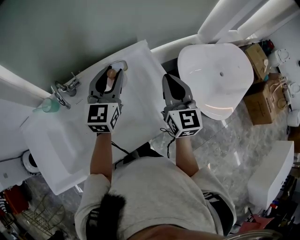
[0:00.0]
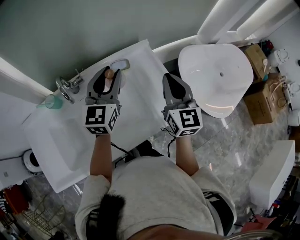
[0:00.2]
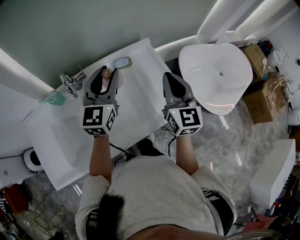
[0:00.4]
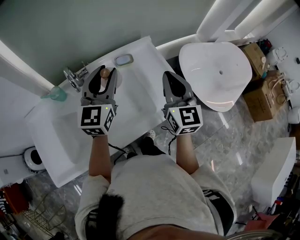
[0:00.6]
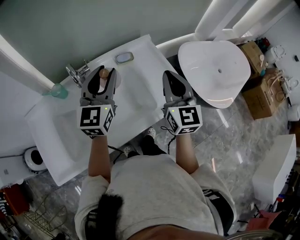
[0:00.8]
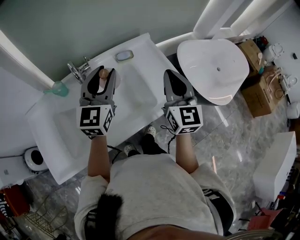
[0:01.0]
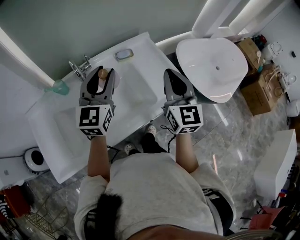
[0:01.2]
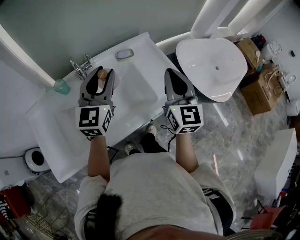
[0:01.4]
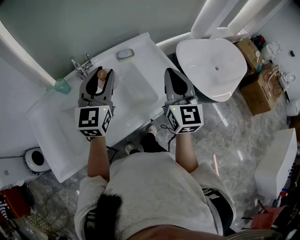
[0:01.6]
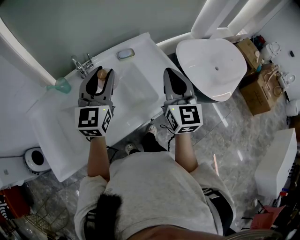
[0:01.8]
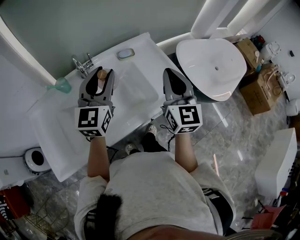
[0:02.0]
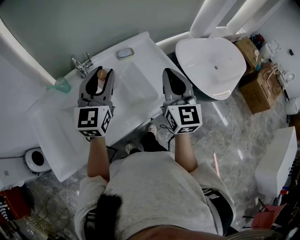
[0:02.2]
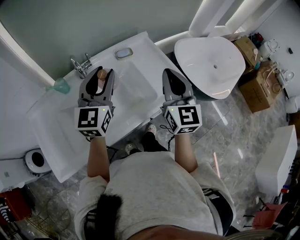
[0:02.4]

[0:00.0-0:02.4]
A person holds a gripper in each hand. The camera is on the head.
0:00.0 to 0:01.2: The right gripper shifts some 15 cm backward. Meanwhile the left gripper goes approximately 15 cm backward and to the left.
0:01.2 to 0:02.4: The grippers move only a little.

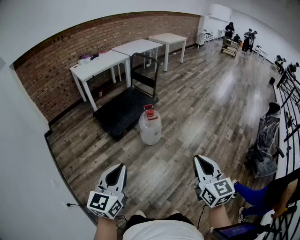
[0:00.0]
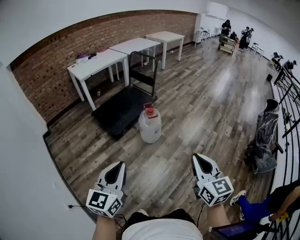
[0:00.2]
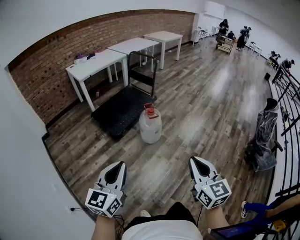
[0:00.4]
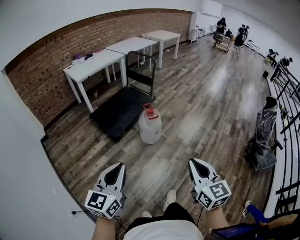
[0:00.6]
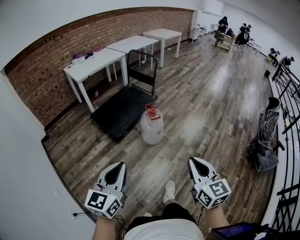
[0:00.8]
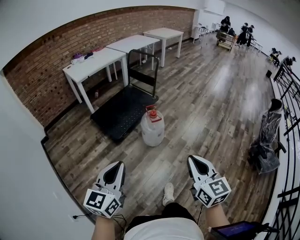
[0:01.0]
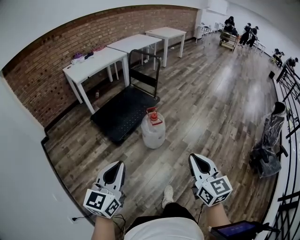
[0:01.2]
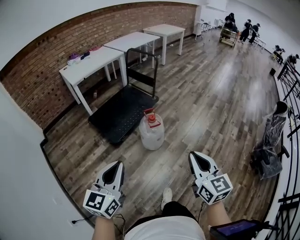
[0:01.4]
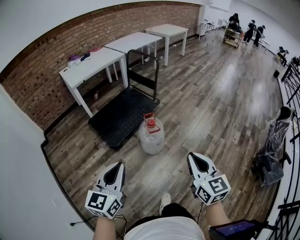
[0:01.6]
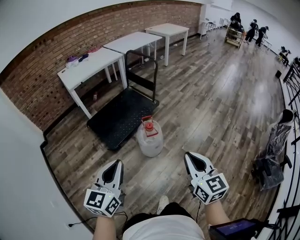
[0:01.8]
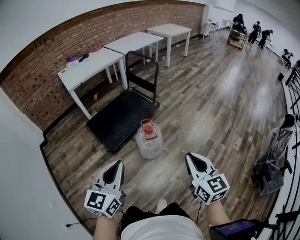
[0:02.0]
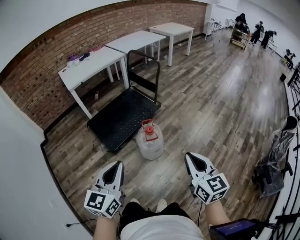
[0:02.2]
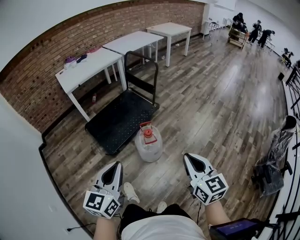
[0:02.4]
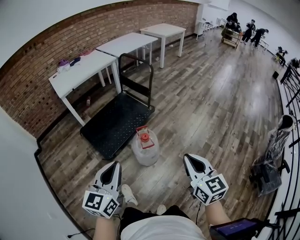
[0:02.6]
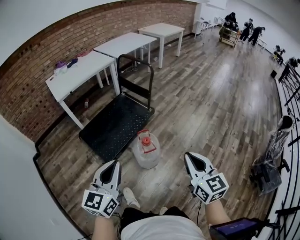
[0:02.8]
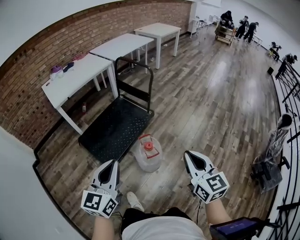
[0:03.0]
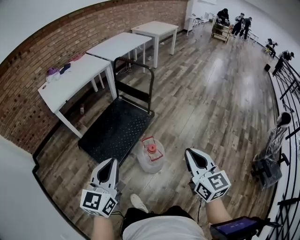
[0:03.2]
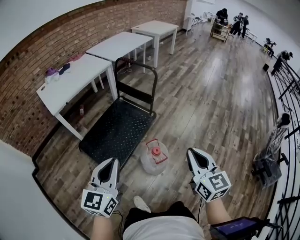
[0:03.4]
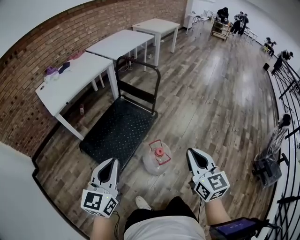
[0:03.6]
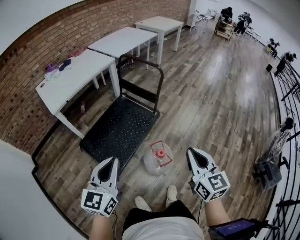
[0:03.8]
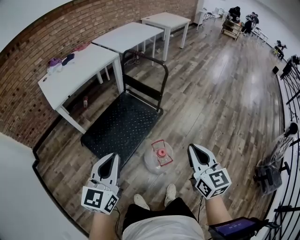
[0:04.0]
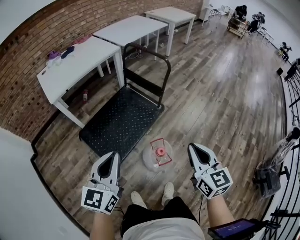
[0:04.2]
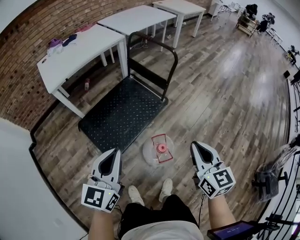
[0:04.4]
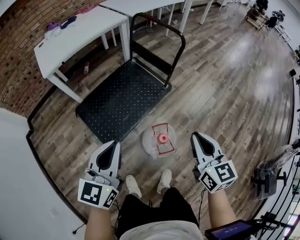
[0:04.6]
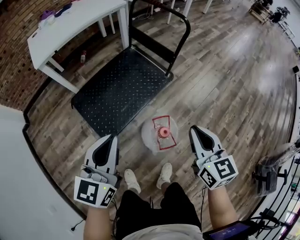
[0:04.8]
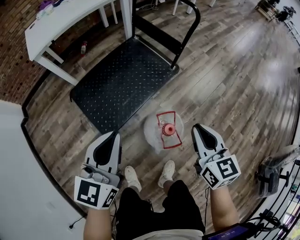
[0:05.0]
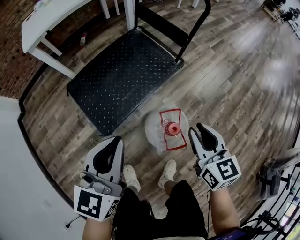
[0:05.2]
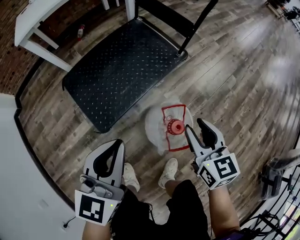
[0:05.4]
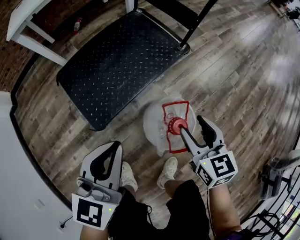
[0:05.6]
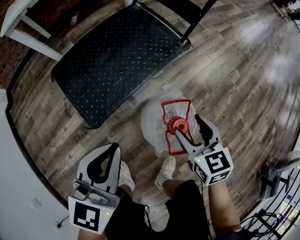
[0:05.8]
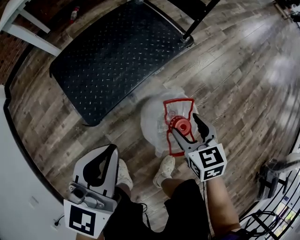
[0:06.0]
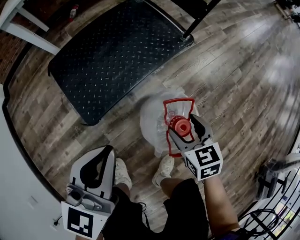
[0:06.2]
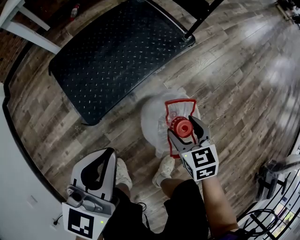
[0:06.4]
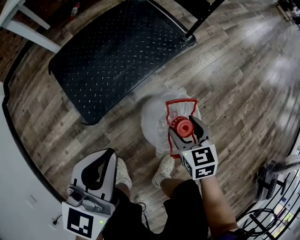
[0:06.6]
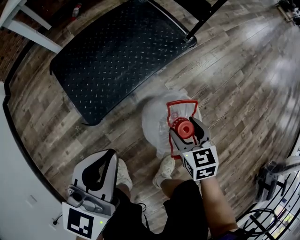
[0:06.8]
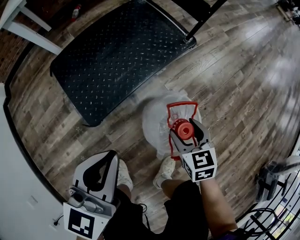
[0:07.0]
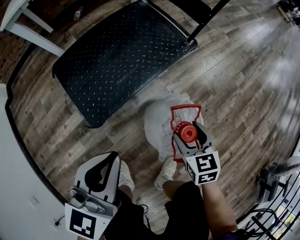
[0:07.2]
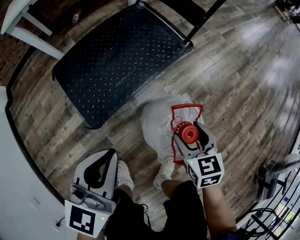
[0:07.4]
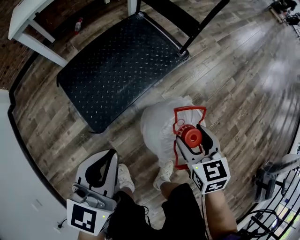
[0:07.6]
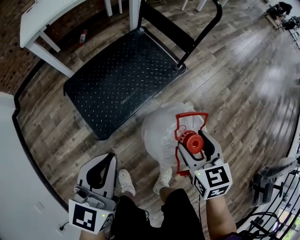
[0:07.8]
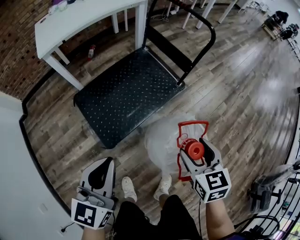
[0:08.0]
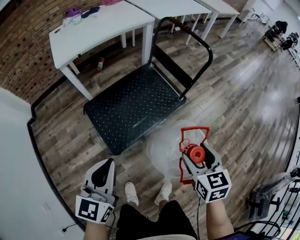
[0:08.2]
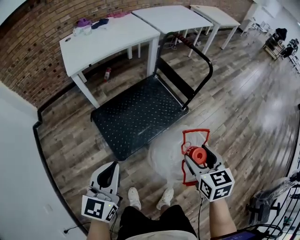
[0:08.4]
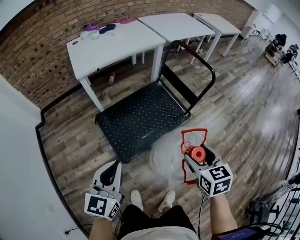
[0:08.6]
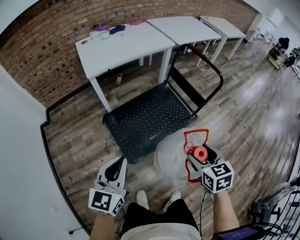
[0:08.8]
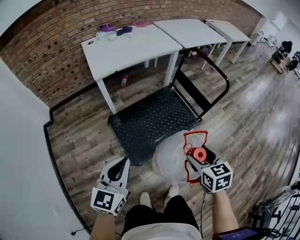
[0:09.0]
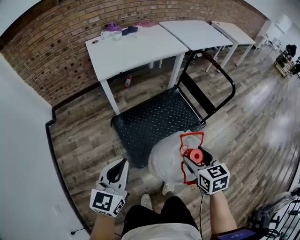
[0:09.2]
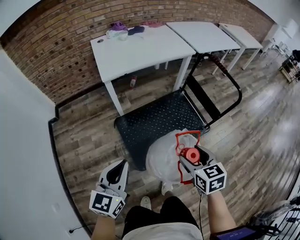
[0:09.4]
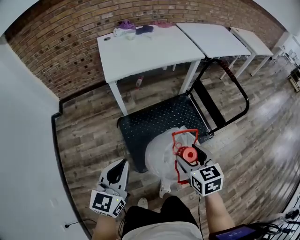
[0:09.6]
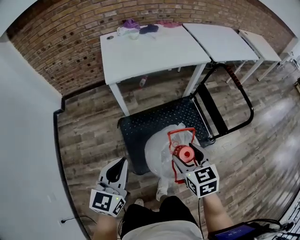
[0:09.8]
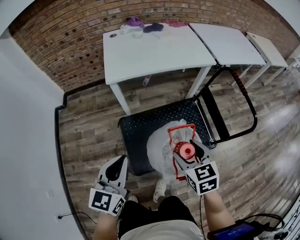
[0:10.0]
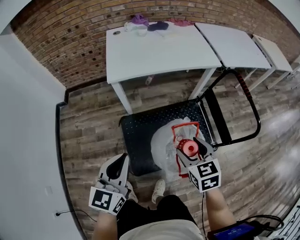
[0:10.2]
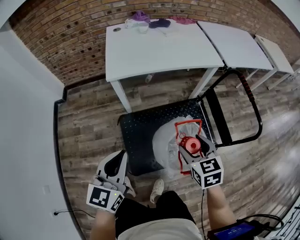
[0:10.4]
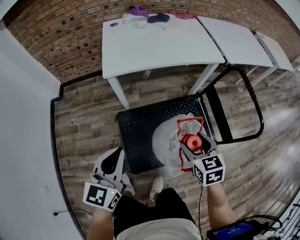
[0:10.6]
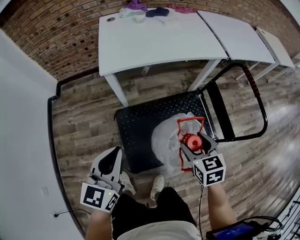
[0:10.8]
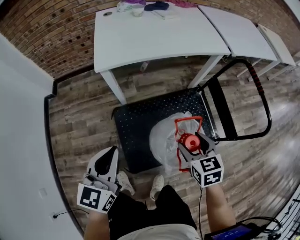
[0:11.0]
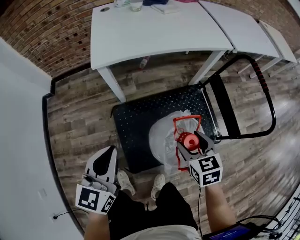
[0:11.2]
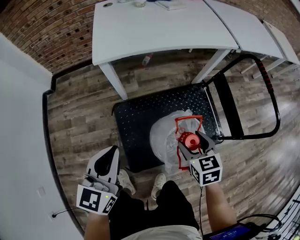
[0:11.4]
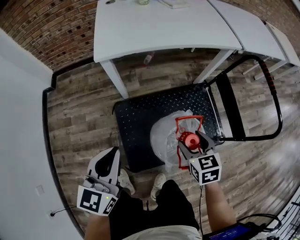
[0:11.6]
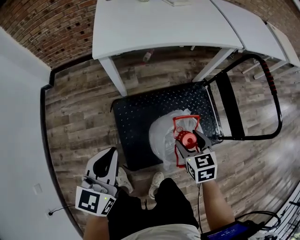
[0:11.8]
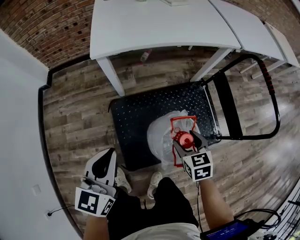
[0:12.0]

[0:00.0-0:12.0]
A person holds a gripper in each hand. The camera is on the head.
0:00.0 to 0:01.6: Both grippers move forward, roughly 25 cm.
0:01.6 to 0:03.0: Both grippers move forward, some 25 cm.
0:03.0 to 0:04.4: The right gripper heads forward and downward, covering some 20 cm. Meanwhile the left gripper moves forward, some 20 cm.
0:04.4 to 0:06.0: Both grippers travel together downward, some 35 cm. The right gripper changes its angle by about 30 degrees, and opens up.
0:06.0 to 0:07.6: The right gripper is displaced upward by roughly 10 cm. The left gripper travels upward by about 5 cm.
0:07.6 to 0:09.0: The grippers both shift upward and to the left by roughly 30 cm.
0:09.0 to 0:10.4: Both grippers move forward, about 25 cm. The right gripper changes its angle by roughly 20 degrees.
0:10.4 to 0:12.0: The right gripper heads downward, covering approximately 20 cm. The left gripper moves downward, some 10 cm.

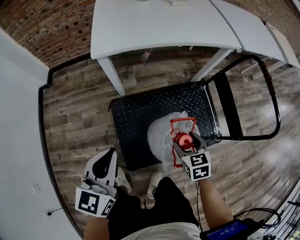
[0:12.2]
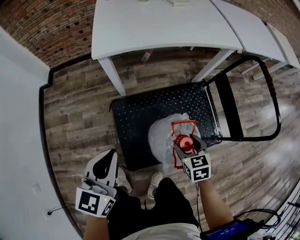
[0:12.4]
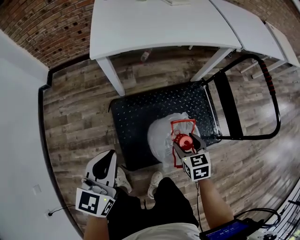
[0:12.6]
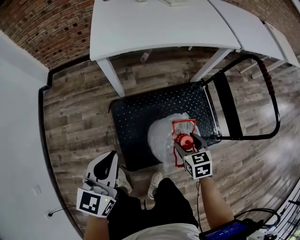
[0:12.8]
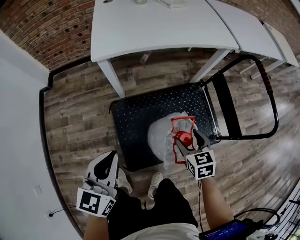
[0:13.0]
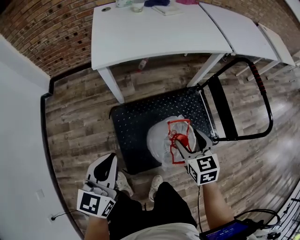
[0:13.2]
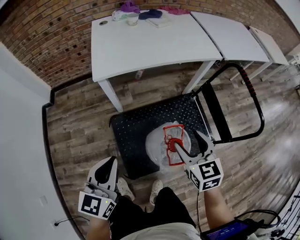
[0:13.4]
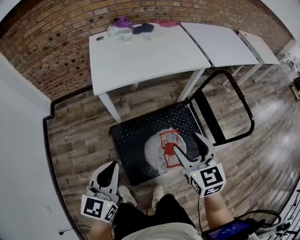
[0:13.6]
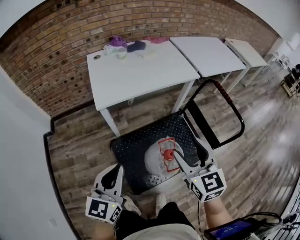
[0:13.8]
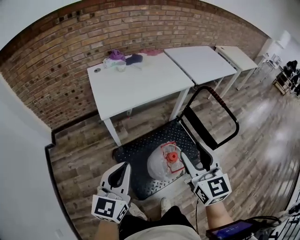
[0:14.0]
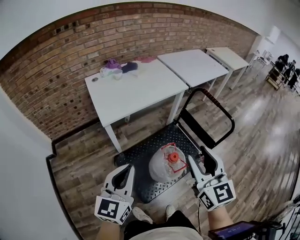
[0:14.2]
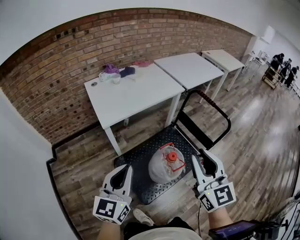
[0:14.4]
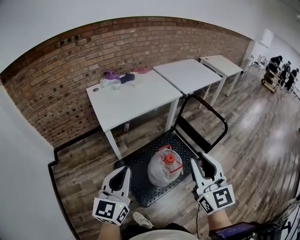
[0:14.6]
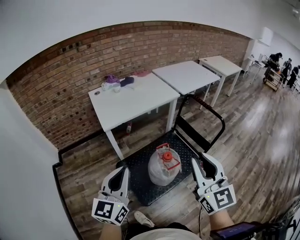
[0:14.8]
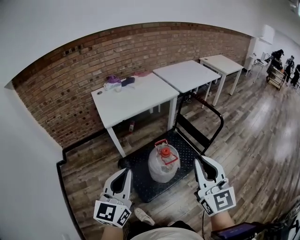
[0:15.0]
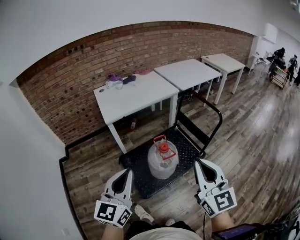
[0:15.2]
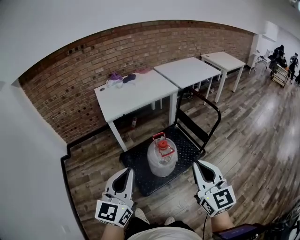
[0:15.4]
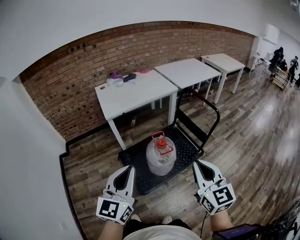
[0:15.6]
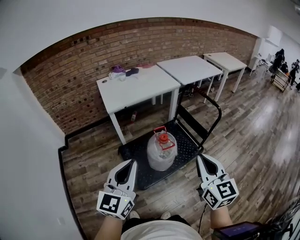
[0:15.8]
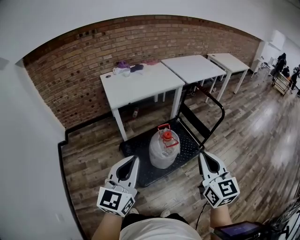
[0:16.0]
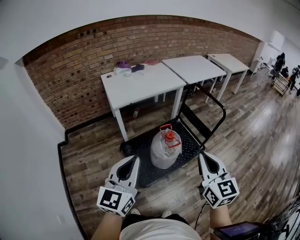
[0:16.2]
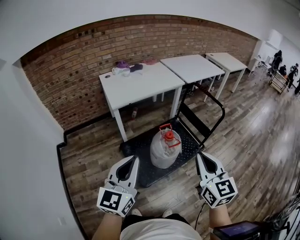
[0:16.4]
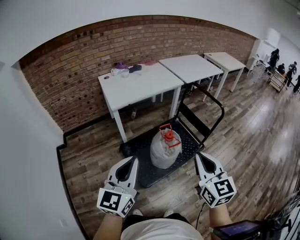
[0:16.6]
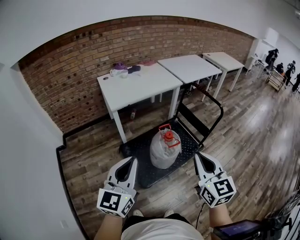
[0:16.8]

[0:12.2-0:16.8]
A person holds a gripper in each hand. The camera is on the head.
0:12.2 to 0:13.8: The right gripper is displaced upward by approximately 35 cm, and tips its fingers upward by about 30 degrees. Meanwhile the left gripper heads upward, covering roughly 15 cm.
0:13.8 to 0:15.2: The right gripper moves backward and upward, some 30 cm, rotates roughly 20 degrees, and closes. Meanwhile the left gripper travels backward, upward and to the right by roughly 25 cm.
0:15.2 to 0:16.8: The grippers both shift to the left by approximately 5 cm.

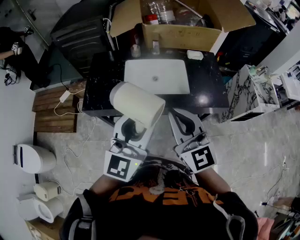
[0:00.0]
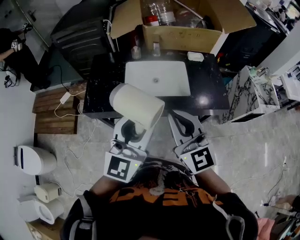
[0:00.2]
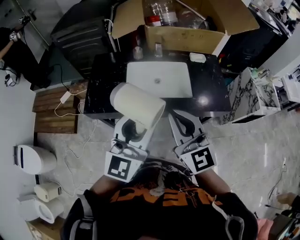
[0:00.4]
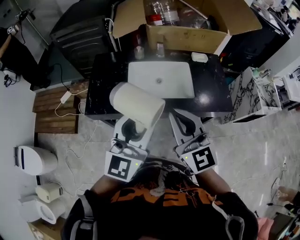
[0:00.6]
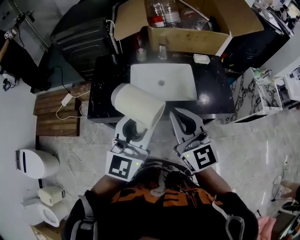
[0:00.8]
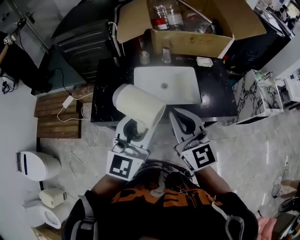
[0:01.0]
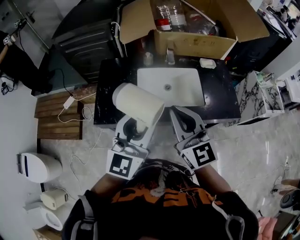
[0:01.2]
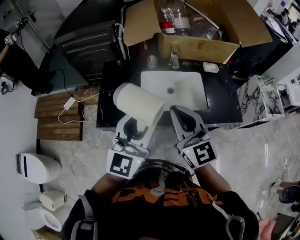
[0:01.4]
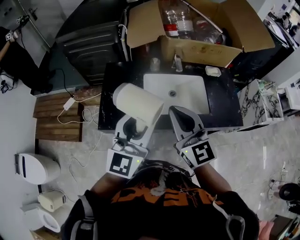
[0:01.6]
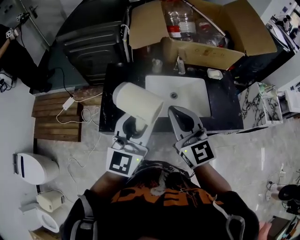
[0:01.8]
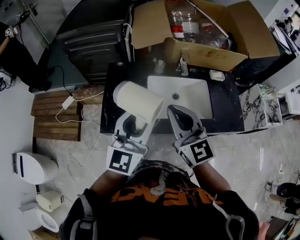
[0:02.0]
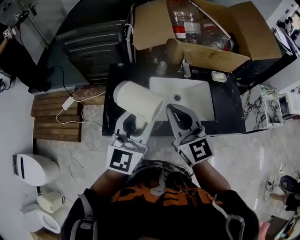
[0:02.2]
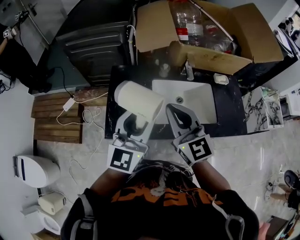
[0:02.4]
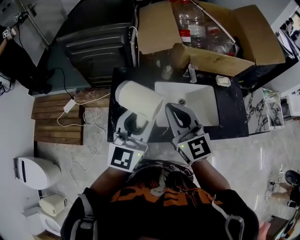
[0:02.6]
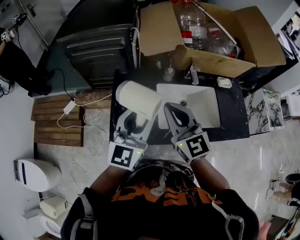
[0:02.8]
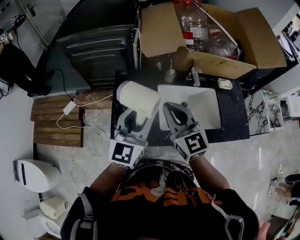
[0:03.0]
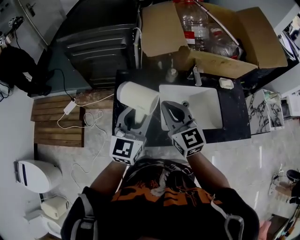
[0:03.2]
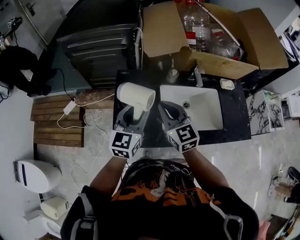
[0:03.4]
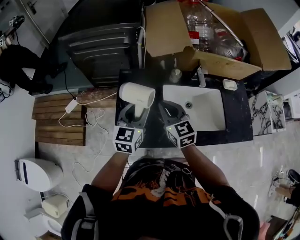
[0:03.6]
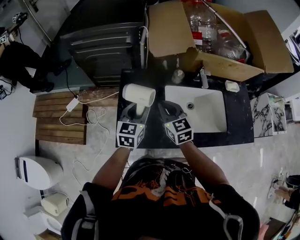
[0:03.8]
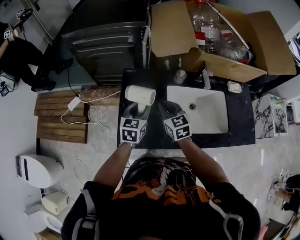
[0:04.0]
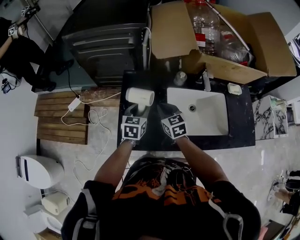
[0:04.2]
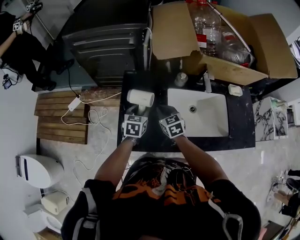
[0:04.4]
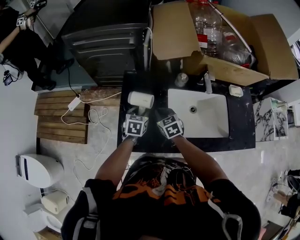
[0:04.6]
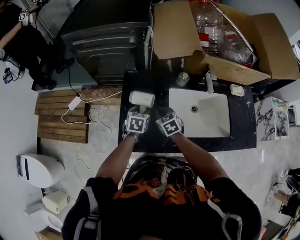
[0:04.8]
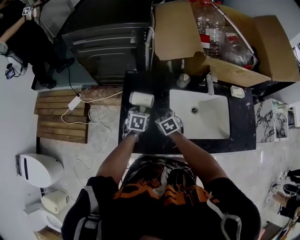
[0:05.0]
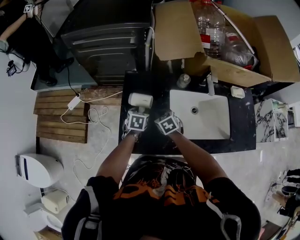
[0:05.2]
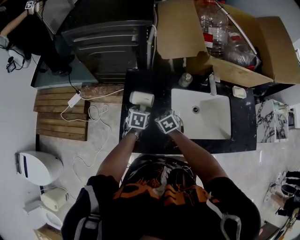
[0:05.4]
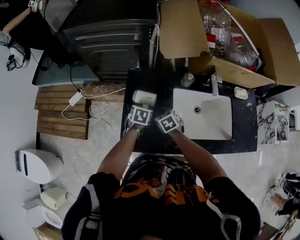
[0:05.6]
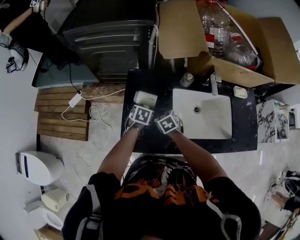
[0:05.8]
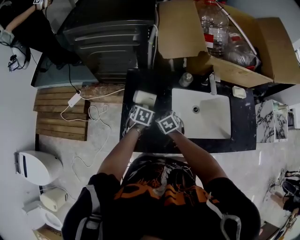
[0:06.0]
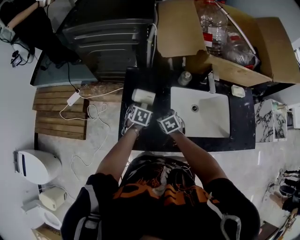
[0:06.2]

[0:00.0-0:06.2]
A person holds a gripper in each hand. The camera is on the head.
0:00.0 to 0:01.6: The left gripper moves to the left and forward, some 20 cm. The right gripper heads forward and to the left, covering about 20 cm.
0:01.6 to 0:03.2: Both grippers travel together forward, to the left and downward, some 20 cm.
0:03.2 to 0:04.6: The two grippers go about 25 cm downward. The left gripper angles its fingers downward, by approximately 40 degrees. Meanwhile the right gripper tips its fingers downward by some 30 degrees.
0:04.6 to 0:06.2: Both grippers move downward, about 5 cm. The left gripper opens its fingers.
